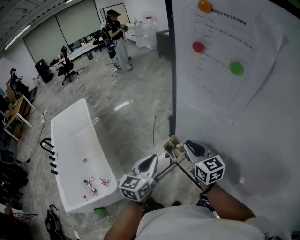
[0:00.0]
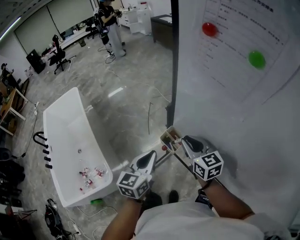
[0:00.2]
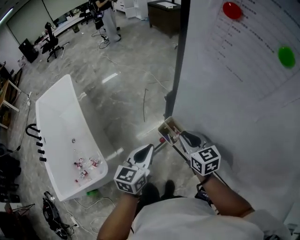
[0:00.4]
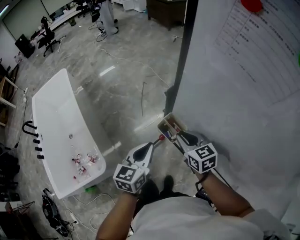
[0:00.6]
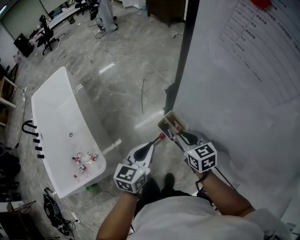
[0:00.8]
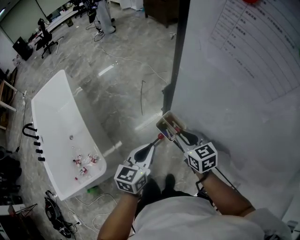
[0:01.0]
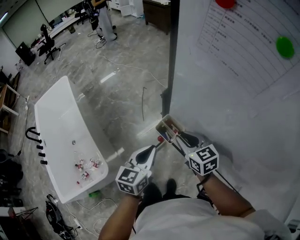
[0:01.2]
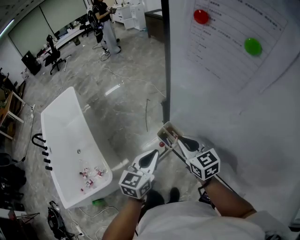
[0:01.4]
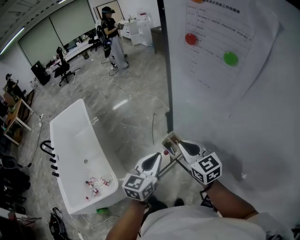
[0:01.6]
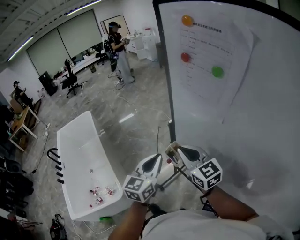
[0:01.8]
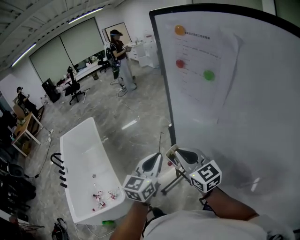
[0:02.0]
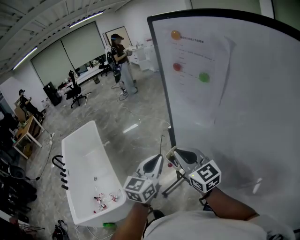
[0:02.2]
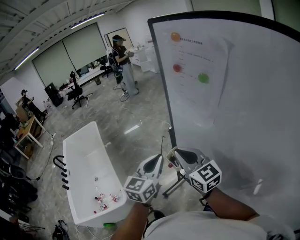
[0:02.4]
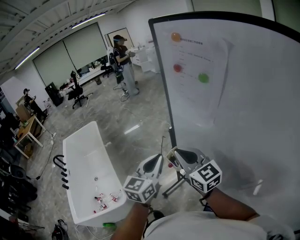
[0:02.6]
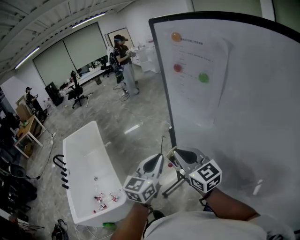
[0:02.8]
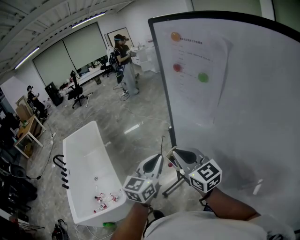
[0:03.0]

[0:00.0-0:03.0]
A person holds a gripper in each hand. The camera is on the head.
0:00.0 to 0:01.6: The right gripper moves approximately 15 cm downward and comes back, while the left gripper travels downward and back again, roughly 10 cm each way.
0:01.6 to 0:03.0: The left gripper goes roughly 10 cm upward. Meanwhile the right gripper is displaced upward and backward by roughly 15 cm.

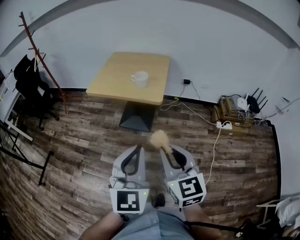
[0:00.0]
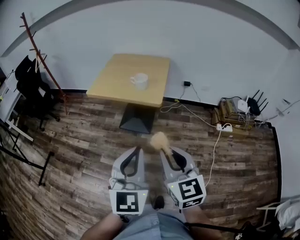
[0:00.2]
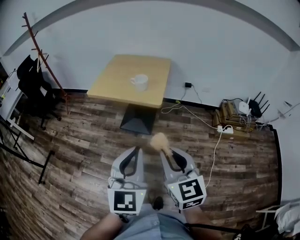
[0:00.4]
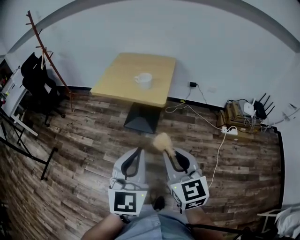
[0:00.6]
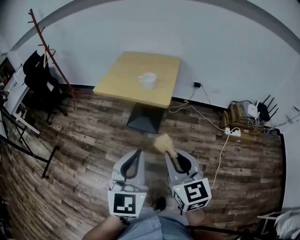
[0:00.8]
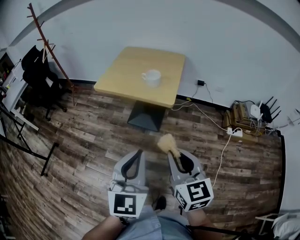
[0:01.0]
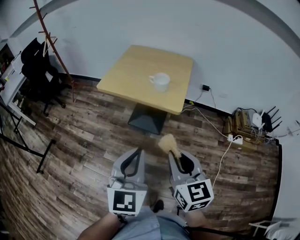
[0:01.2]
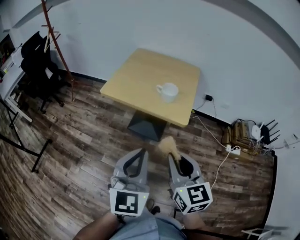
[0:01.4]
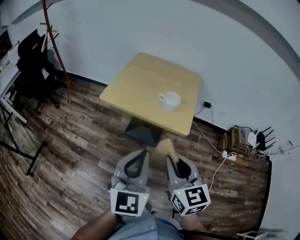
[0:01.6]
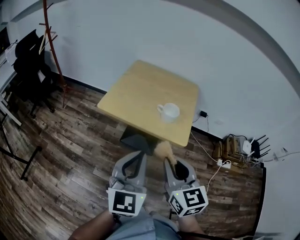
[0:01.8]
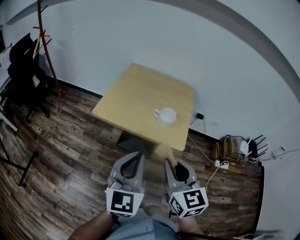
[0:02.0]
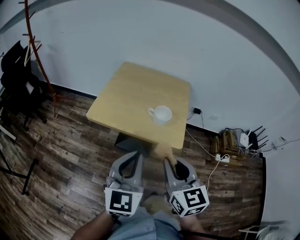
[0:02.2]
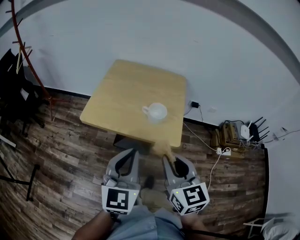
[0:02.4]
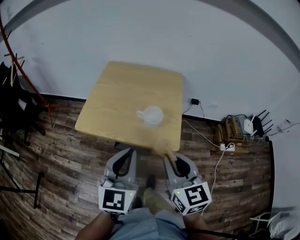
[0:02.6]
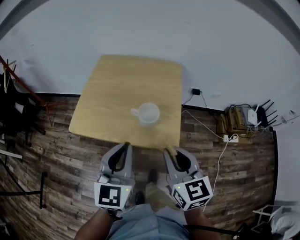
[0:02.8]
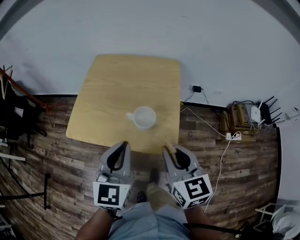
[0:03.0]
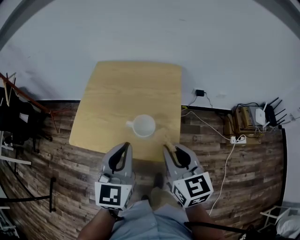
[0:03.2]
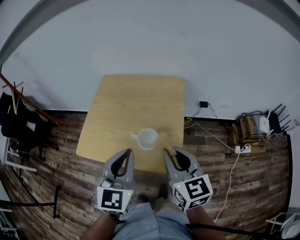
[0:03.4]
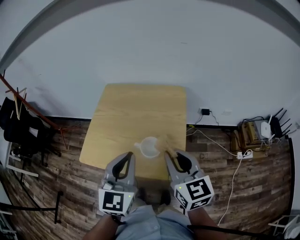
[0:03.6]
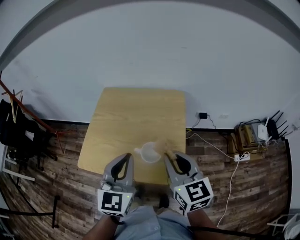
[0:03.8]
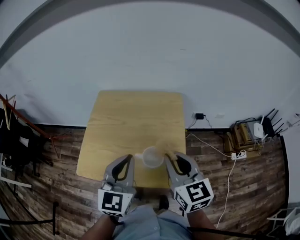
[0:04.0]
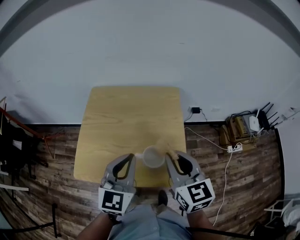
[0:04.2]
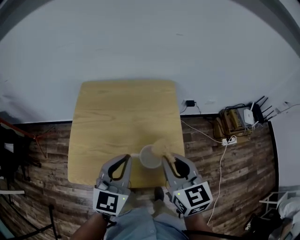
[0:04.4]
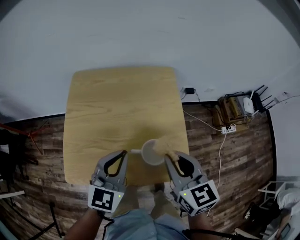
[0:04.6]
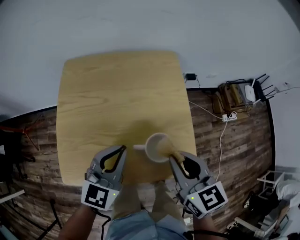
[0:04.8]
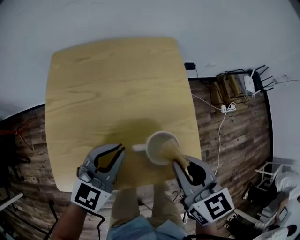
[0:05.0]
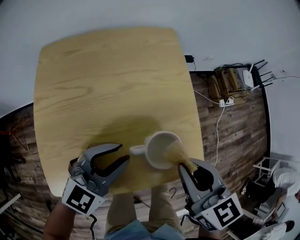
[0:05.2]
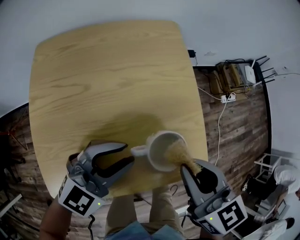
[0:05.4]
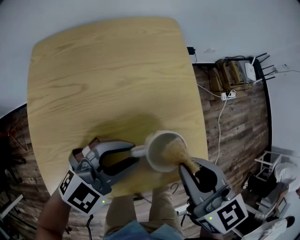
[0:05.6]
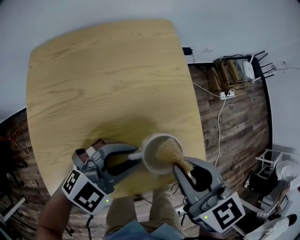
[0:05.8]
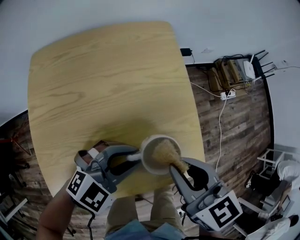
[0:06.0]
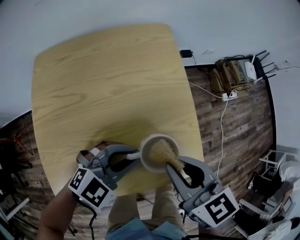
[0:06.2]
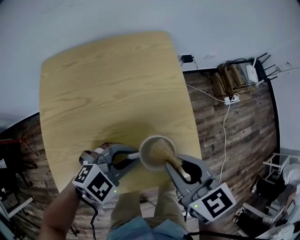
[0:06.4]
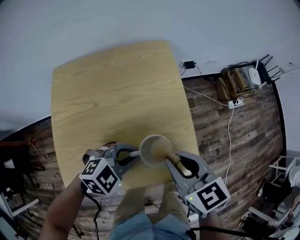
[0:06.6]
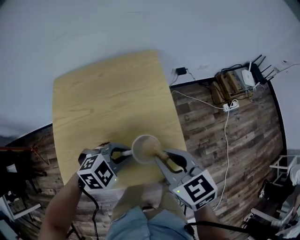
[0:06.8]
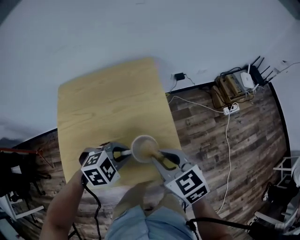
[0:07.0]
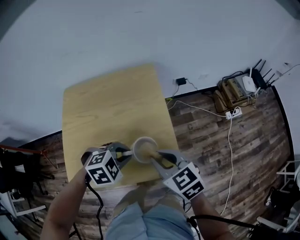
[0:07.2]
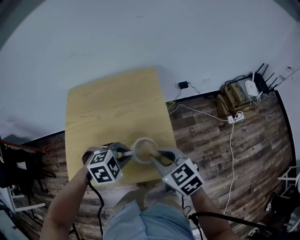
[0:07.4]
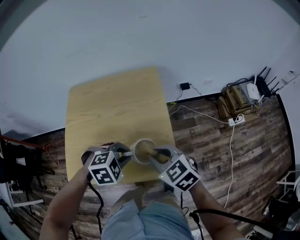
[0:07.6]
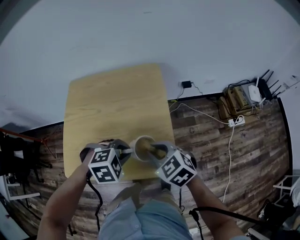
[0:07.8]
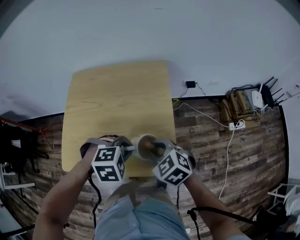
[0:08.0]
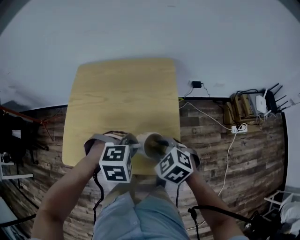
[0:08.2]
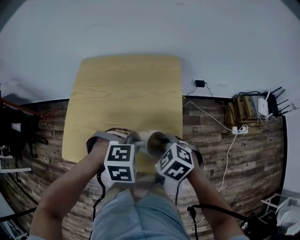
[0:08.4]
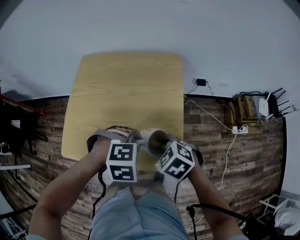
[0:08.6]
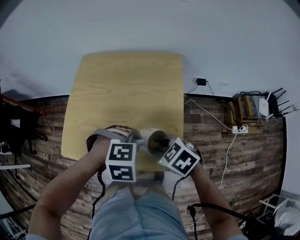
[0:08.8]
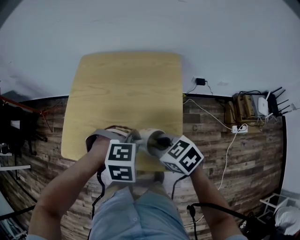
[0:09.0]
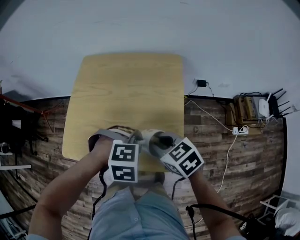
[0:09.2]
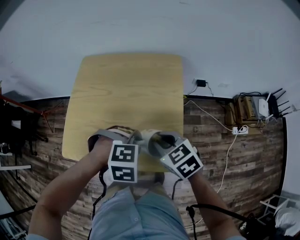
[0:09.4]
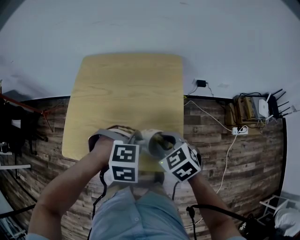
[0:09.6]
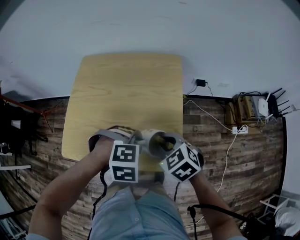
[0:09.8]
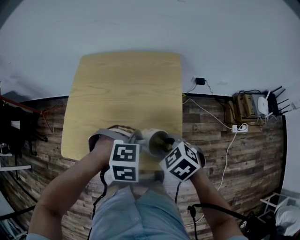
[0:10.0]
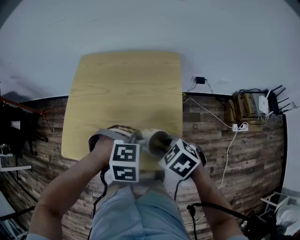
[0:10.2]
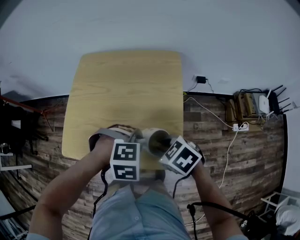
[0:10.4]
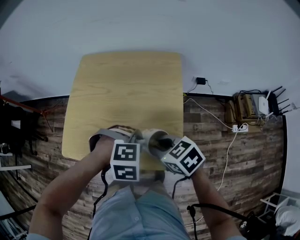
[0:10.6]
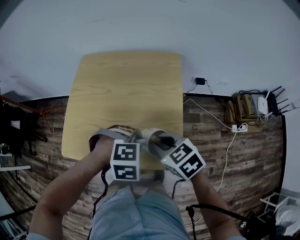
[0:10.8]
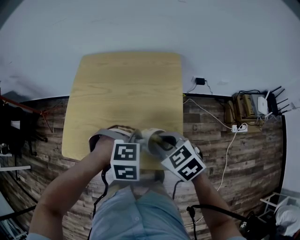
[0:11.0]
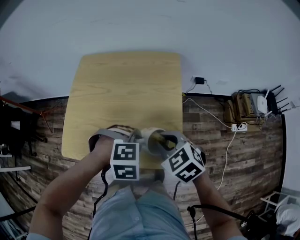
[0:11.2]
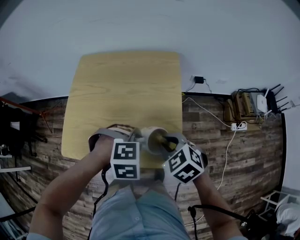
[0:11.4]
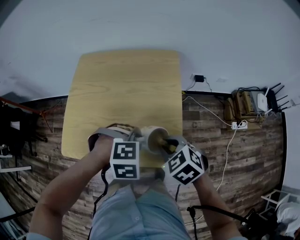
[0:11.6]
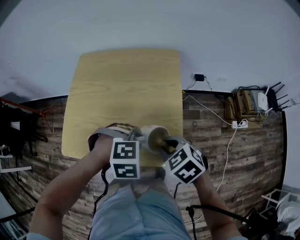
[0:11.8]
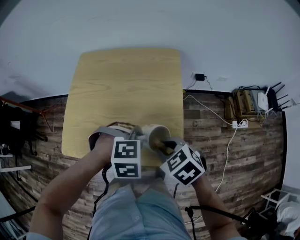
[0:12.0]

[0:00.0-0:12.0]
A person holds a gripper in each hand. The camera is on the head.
0:00.0 to 0:01.6: The two grippers go about 25 cm forward and to the left.
0:01.6 to 0:03.0: The left gripper goes approximately 25 cm forward; the right gripper heads forward and to the right, covering approximately 25 cm.
0:03.0 to 0:04.4: Both grippers travel together forward, approximately 15 cm.
0:04.4 to 0:06.0: The right gripper shifts approximately 10 cm downward, while the left gripper is displaced downward by about 15 cm, rotates some 60 degrees, and opens.
0:06.0 to 0:07.6: The right gripper rotates roughly 30 degrees; the left gripper tips its fingers downward by approximately 40 degrees.
0:07.6 to 0:09.0: The right gripper turns by some 20 degrees.

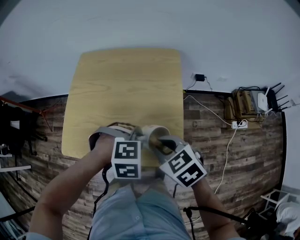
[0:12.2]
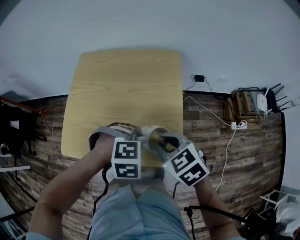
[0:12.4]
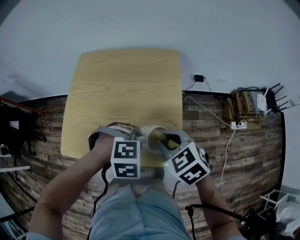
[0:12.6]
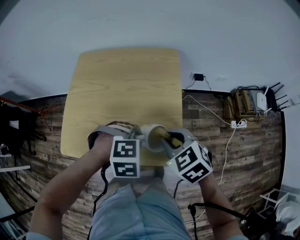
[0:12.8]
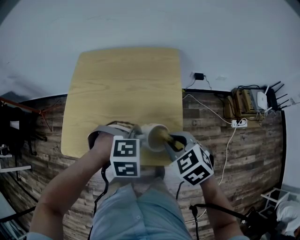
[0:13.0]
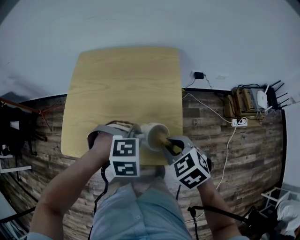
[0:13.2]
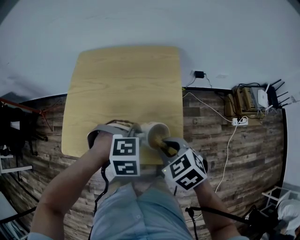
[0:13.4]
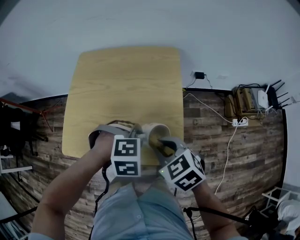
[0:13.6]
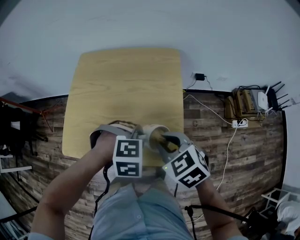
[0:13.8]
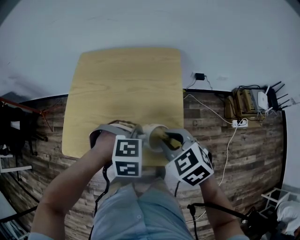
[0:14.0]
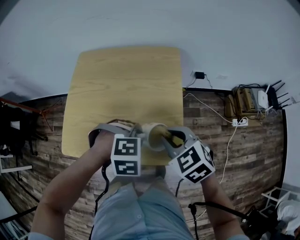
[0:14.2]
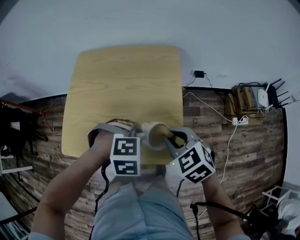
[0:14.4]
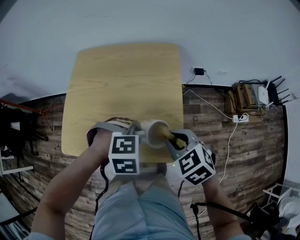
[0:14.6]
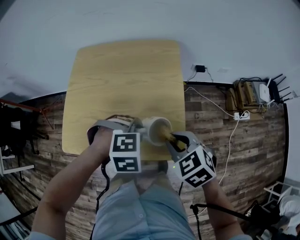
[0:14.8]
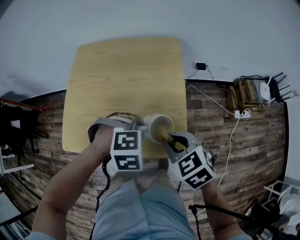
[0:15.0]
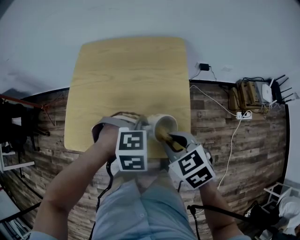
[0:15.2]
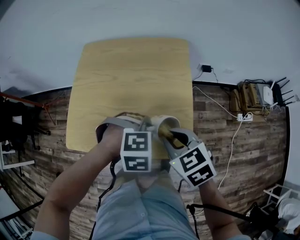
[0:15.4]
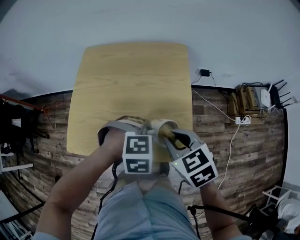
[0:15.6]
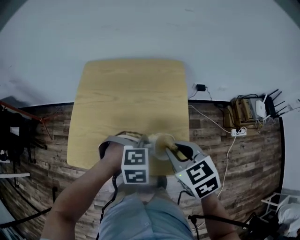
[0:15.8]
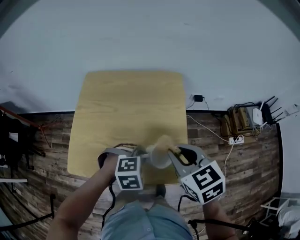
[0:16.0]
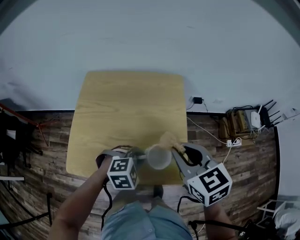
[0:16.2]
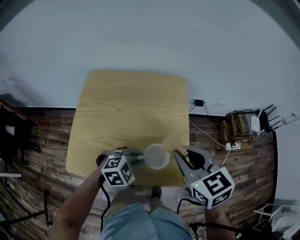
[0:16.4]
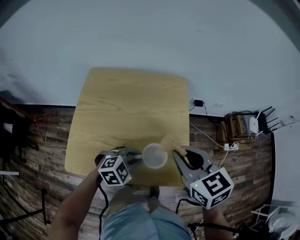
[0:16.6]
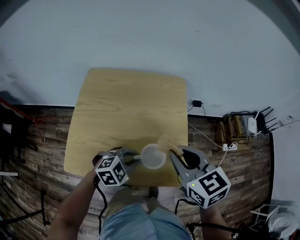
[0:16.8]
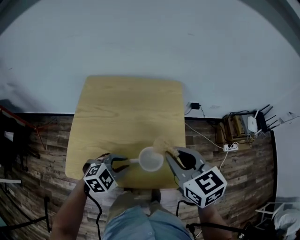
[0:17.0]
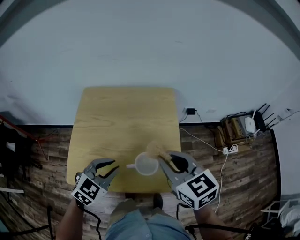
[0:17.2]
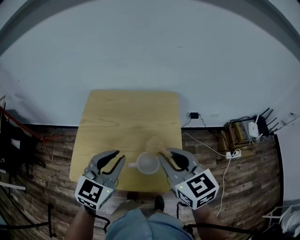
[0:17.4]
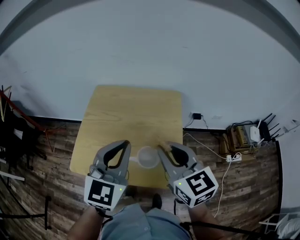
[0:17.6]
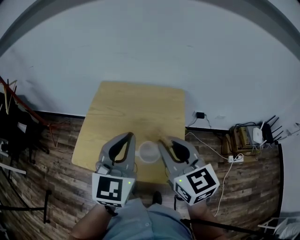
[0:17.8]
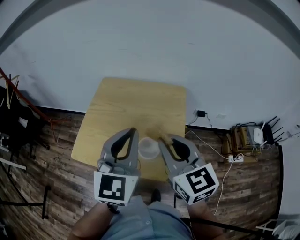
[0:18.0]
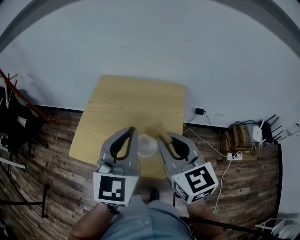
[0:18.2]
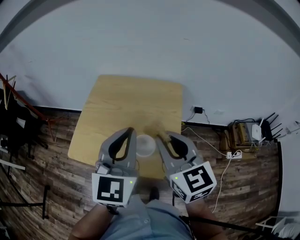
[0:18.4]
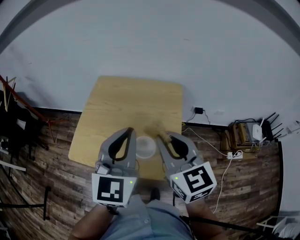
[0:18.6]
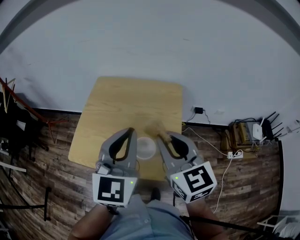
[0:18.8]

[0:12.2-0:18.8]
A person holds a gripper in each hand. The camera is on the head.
0:12.2 to 0:15.4: The grippers move only a little.
0:15.4 to 0:17.2: The right gripper is displaced upward by about 10 cm, and changes its angle by some 20 degrees, while the left gripper is displaced to the left and upward by about 15 cm, and angles its fingers upward, by approximately 40 degrees.
0:17.2 to 0:18.8: The right gripper travels upward by approximately 5 cm. The left gripper moves upward and to the right, roughly 20 cm, tilts its fingers some 30 degrees upward, and closes.

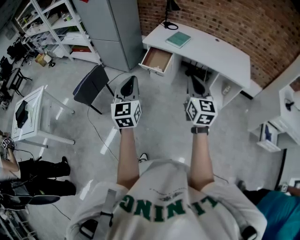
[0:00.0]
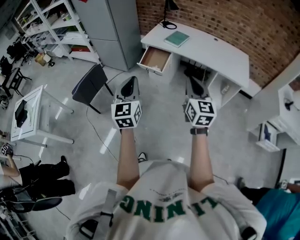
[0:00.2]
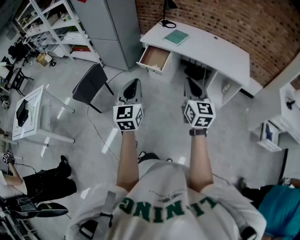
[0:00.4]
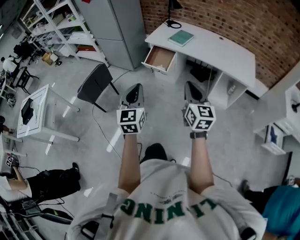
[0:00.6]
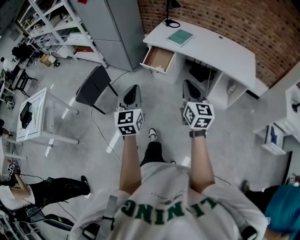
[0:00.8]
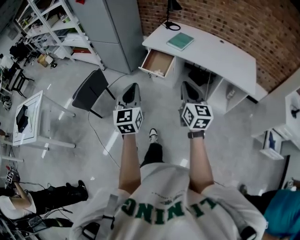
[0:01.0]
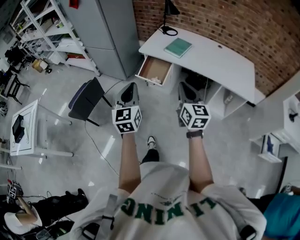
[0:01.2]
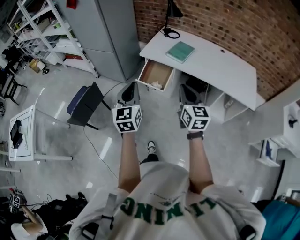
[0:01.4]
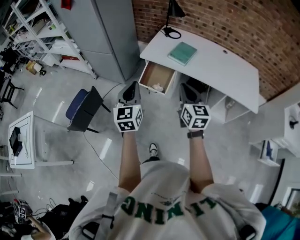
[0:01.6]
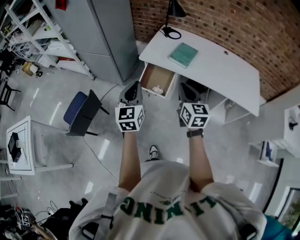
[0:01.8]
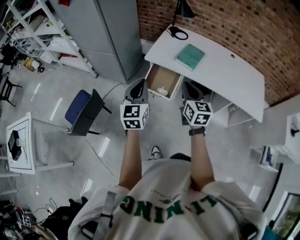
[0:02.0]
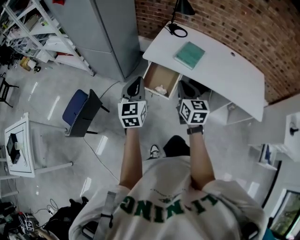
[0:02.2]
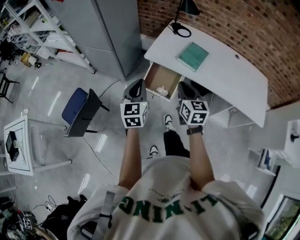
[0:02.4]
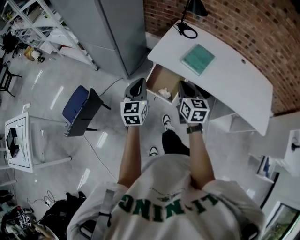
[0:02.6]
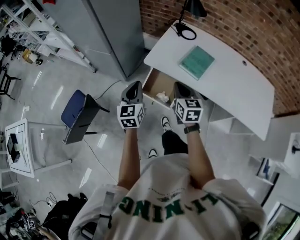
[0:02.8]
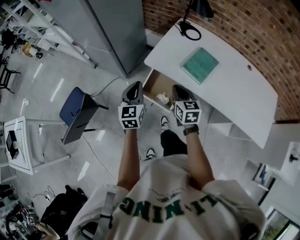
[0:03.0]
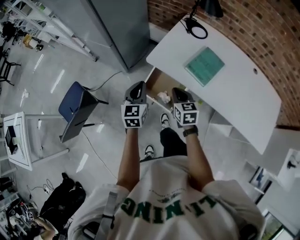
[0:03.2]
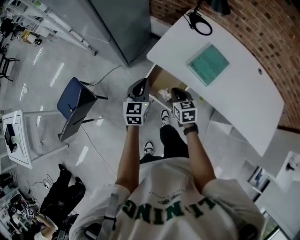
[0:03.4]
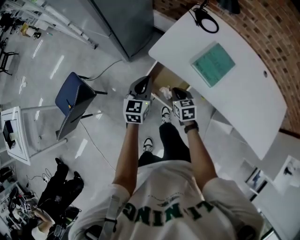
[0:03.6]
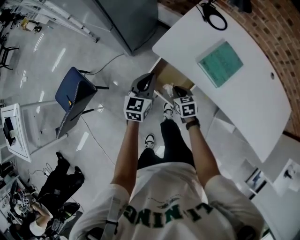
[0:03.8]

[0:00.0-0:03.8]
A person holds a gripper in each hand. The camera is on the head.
0:00.0 to 0:01.2: The grippers both shift forward by roughly 15 cm.
0:01.2 to 0:02.6: The two grippers go some 35 cm forward.
0:02.6 to 0:03.8: The right gripper moves downward and forward, roughly 35 cm, and angles its fingers downward, by approximately 30 degrees; the left gripper heads forward and downward, covering roughly 25 cm.
